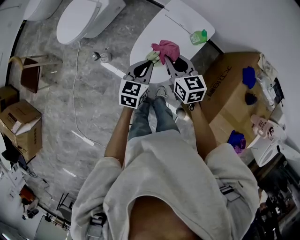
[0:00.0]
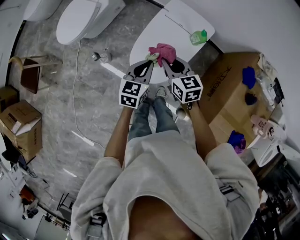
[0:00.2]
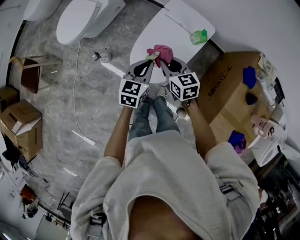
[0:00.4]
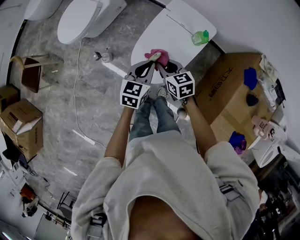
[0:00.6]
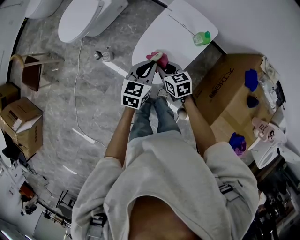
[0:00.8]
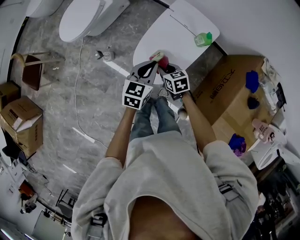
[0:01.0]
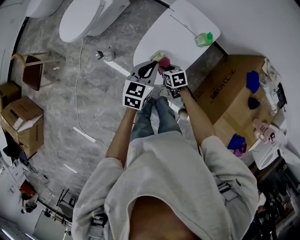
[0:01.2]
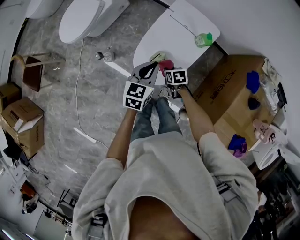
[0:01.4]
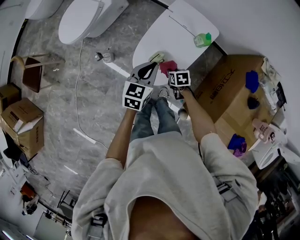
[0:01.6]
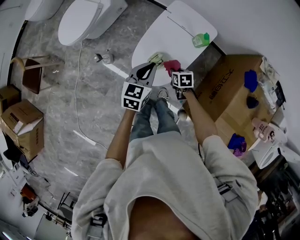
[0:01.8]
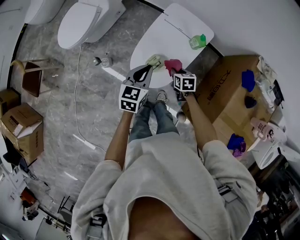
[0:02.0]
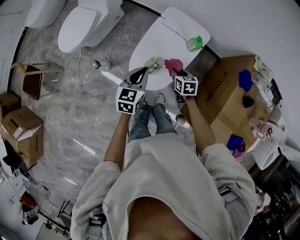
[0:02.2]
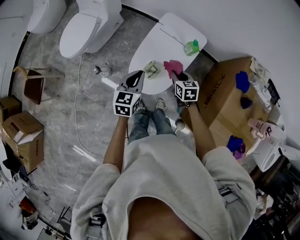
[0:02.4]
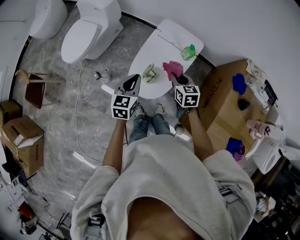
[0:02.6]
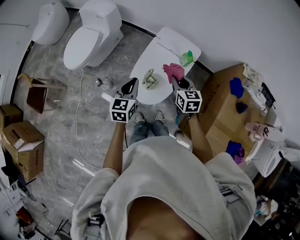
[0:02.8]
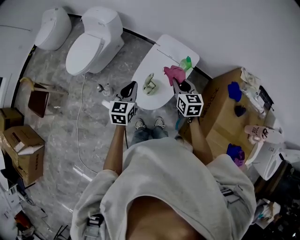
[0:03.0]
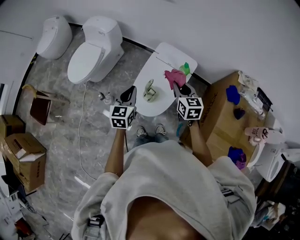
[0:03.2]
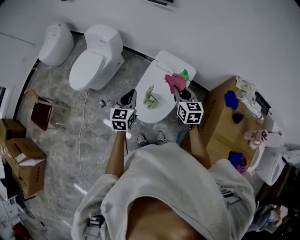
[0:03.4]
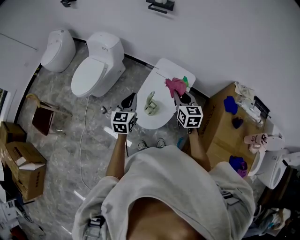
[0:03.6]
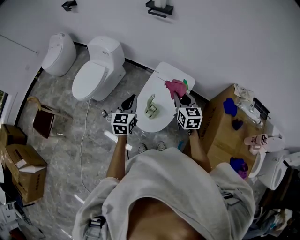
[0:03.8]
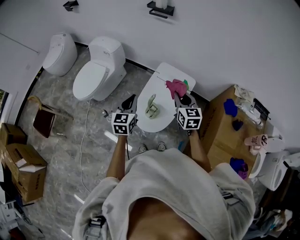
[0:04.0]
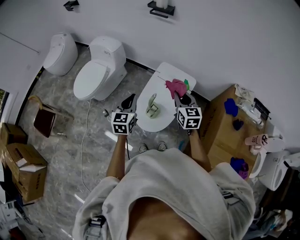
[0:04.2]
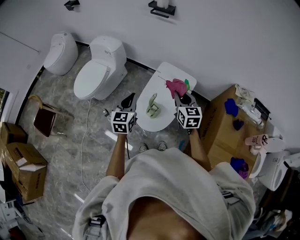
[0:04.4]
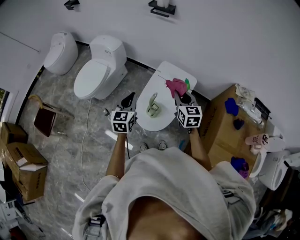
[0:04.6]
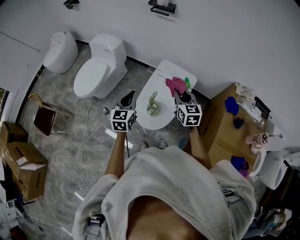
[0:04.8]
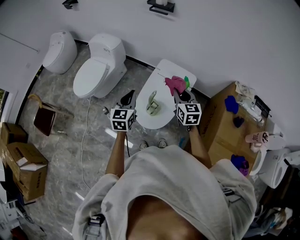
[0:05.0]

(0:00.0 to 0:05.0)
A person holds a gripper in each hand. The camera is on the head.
0:00.0 - 0:01.6: The right gripper is displaced downward by roughly 25 cm, and tilts its fingers roughly 40 degrees downward.
0:01.6 - 0:03.4: The left gripper travels upward and to the left by about 10 cm. The right gripper goes roughly 30 cm upward, and tips its fingers upward by roughly 40 degrees.
0:03.4 - 0:05.0: The grippers make only small movements.

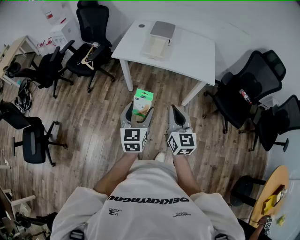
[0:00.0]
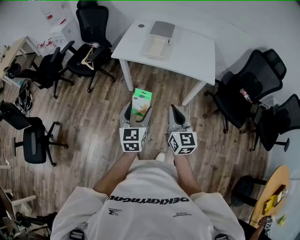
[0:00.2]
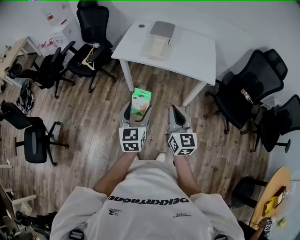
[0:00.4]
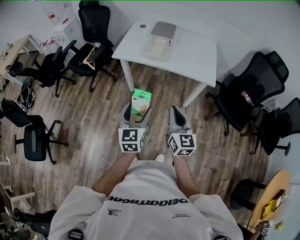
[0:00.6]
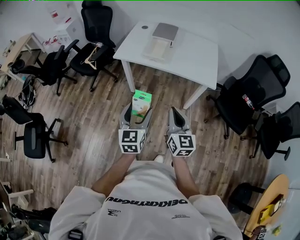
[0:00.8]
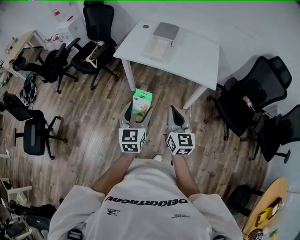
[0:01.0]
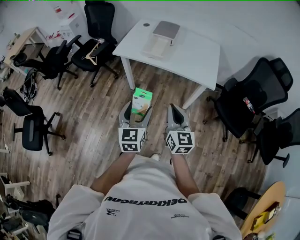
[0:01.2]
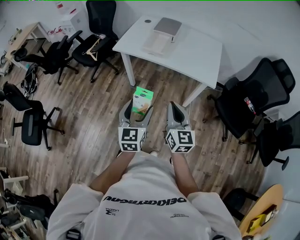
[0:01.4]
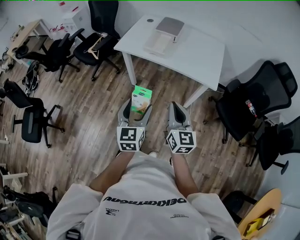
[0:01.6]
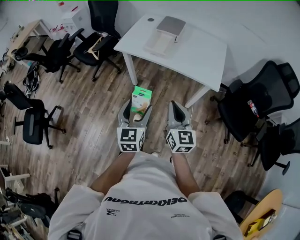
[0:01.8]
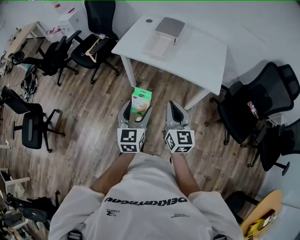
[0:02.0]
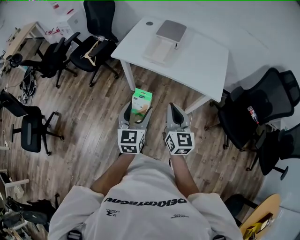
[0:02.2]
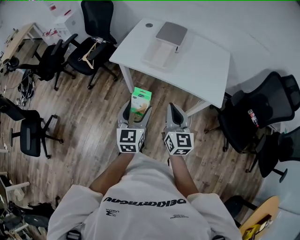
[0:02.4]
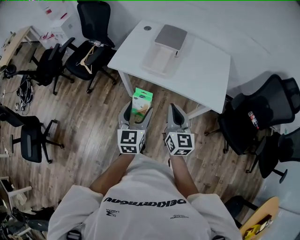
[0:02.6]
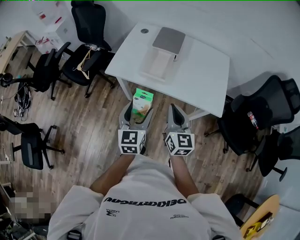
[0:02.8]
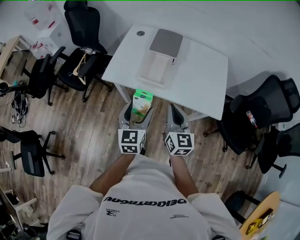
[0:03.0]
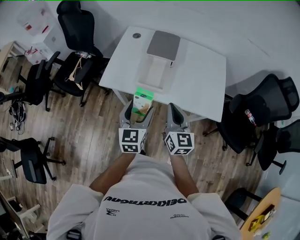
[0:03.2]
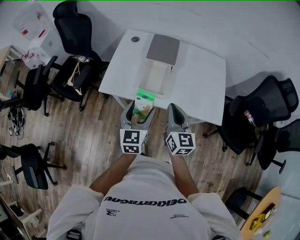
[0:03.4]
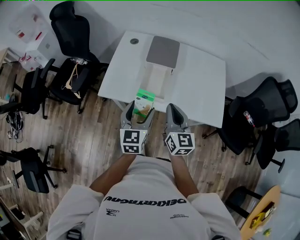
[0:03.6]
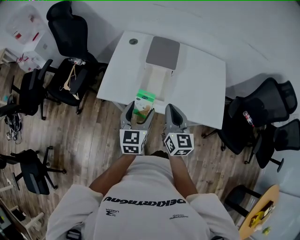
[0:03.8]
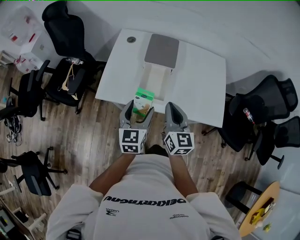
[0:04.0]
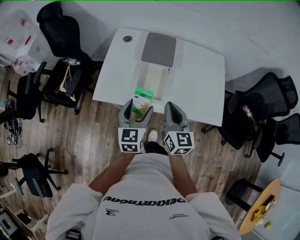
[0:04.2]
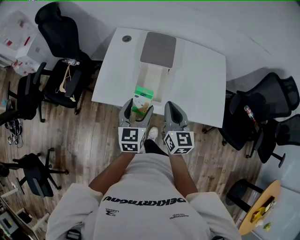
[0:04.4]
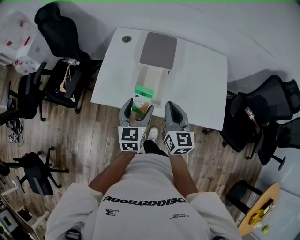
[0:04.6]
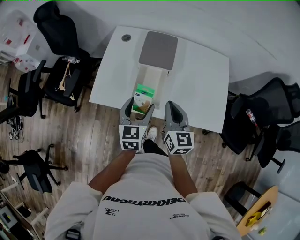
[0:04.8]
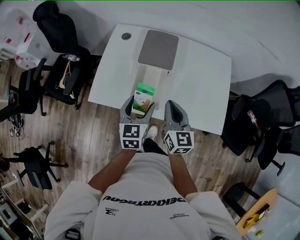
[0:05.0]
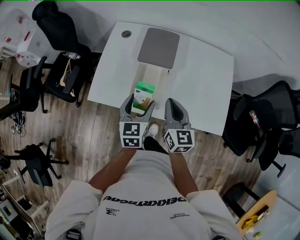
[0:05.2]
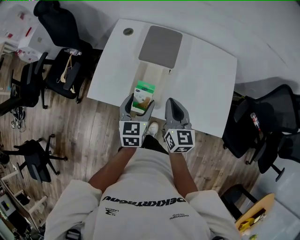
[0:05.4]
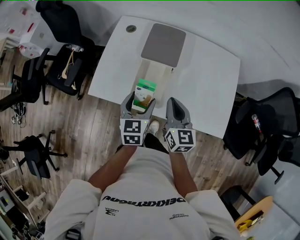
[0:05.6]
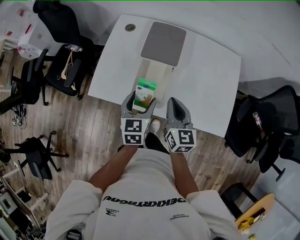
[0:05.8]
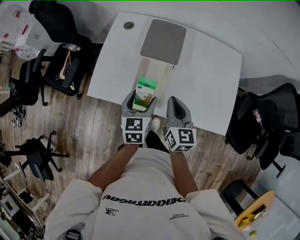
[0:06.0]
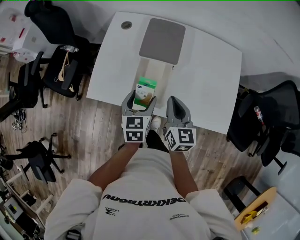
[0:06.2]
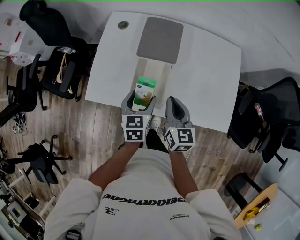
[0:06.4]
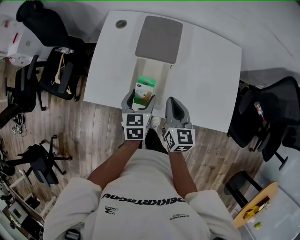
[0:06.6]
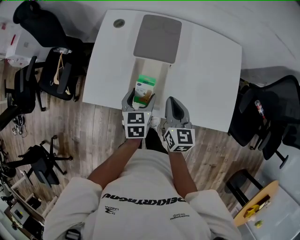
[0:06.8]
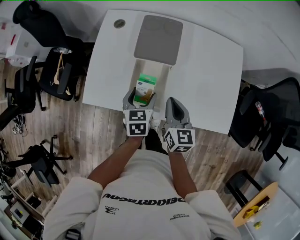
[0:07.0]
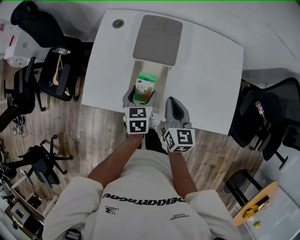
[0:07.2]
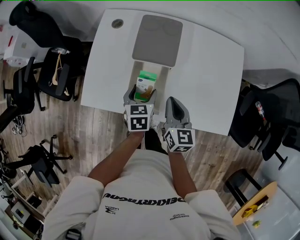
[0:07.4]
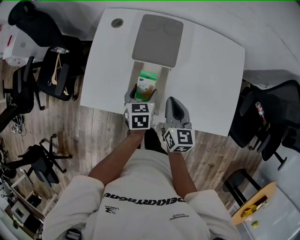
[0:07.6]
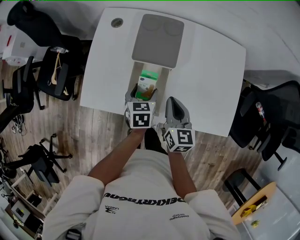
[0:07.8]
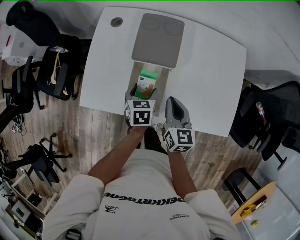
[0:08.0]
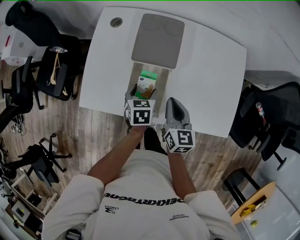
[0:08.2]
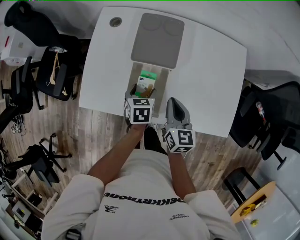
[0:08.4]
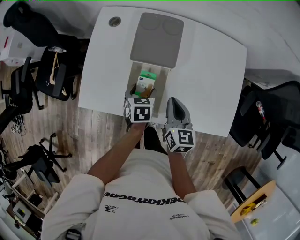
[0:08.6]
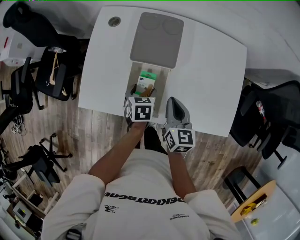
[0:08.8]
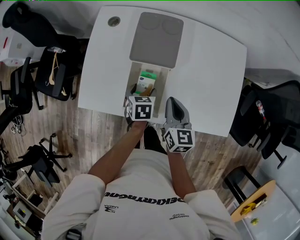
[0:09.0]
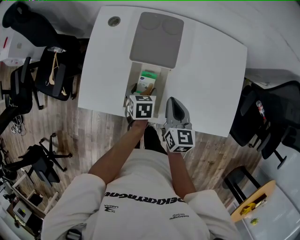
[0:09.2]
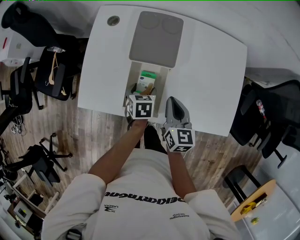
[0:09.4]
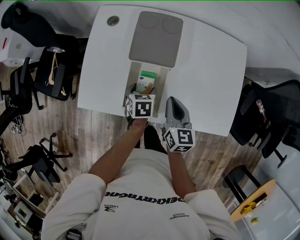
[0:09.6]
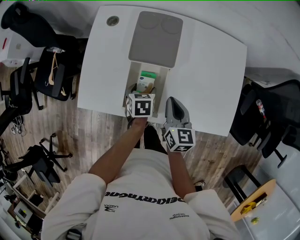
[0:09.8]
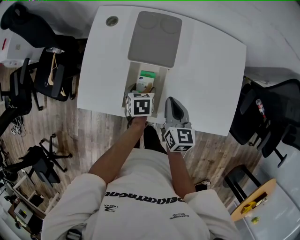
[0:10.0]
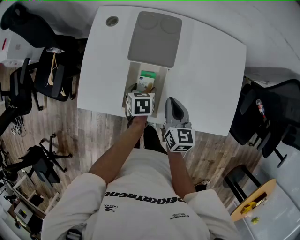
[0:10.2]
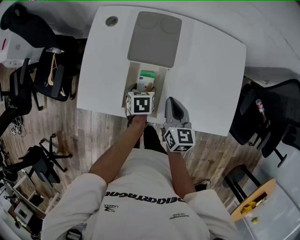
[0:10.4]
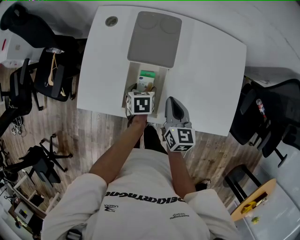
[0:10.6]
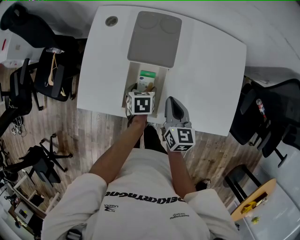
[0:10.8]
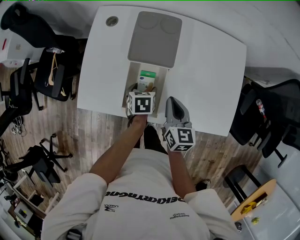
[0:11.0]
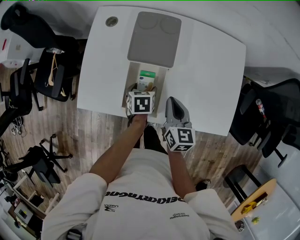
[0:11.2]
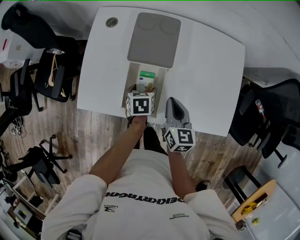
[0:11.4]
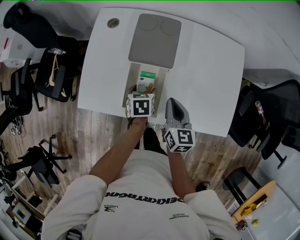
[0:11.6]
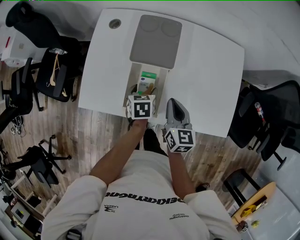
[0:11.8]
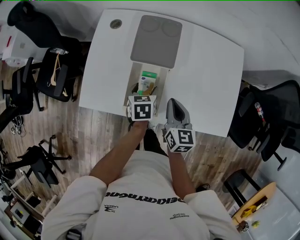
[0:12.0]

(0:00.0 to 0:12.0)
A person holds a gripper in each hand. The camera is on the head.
0:00.0 - 0:01.6: Both grippers move to the right, some 10 cm.
0:01.6 - 0:03.0: The grippers both shift forward by approximately 30 cm.
0:03.0 - 0:04.4: Both grippers travel together forward, approximately 15 cm.
0:04.4 - 0:06.0: Both grippers travel together forward and downward, some 10 cm.
0:06.0 - 0:07.6: The right gripper is displaced downward by some 5 cm, while the left gripper moves downward and forward, roughly 10 cm.
0:07.6 - 0:09.0: The left gripper shifts roughly 5 cm downward.
0:09.0 - 0:10.4: There are only small adjustments of the grippers.
0:10.4 - 0:12.0: The left gripper is displaced upward by roughly 5 cm.

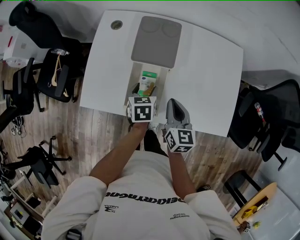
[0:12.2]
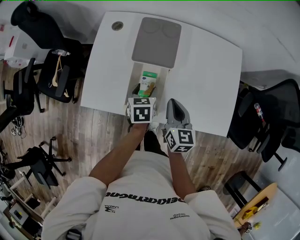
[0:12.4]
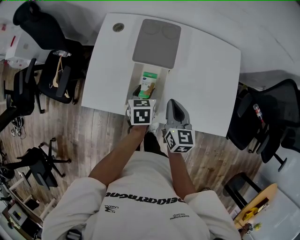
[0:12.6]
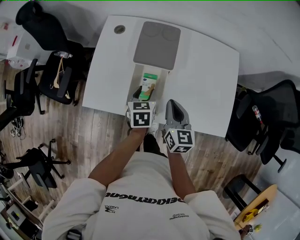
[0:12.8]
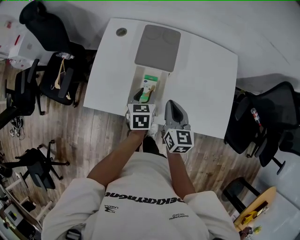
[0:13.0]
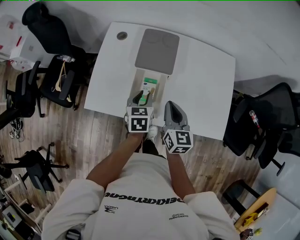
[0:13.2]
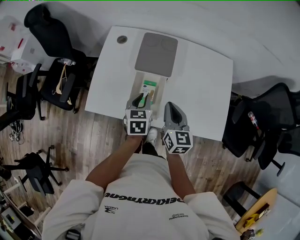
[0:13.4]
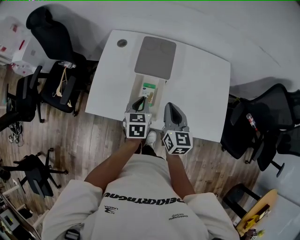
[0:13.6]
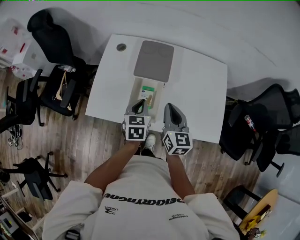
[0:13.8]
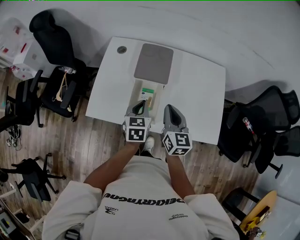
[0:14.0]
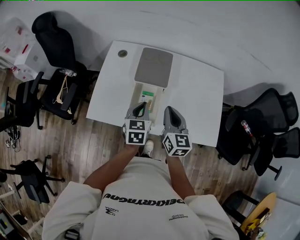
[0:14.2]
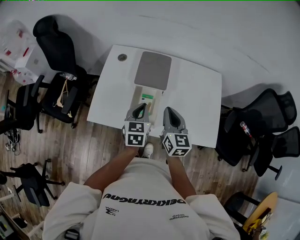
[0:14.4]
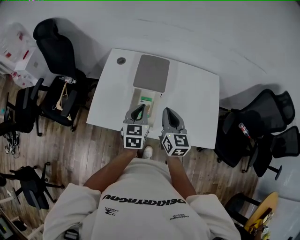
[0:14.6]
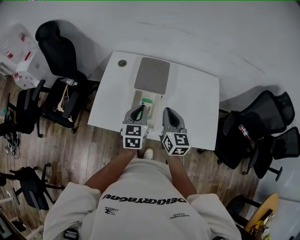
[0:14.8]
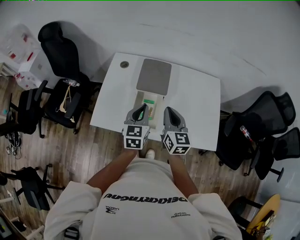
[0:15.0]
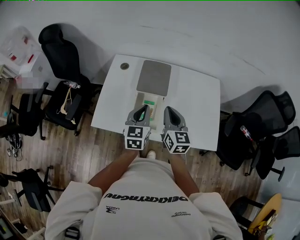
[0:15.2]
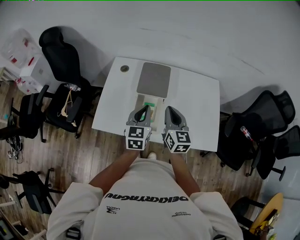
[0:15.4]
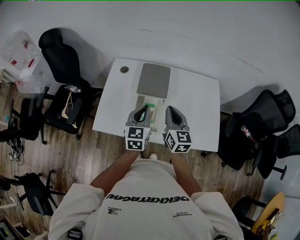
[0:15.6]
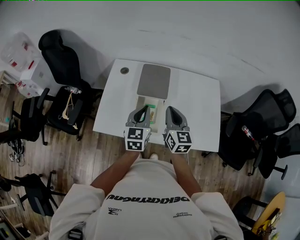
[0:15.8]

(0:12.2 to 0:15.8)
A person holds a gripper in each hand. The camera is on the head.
0:12.2 - 0:14.0: Both grippers travel together upward, roughly 10 cm. The left gripper closes its fingers.
0:14.0 - 0:15.8: The left gripper is displaced upward by some 10 cm, and swivels roughly 20 degrees. The right gripper changes place by some 5 cm.

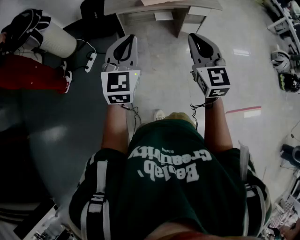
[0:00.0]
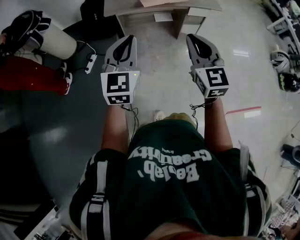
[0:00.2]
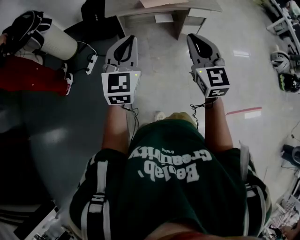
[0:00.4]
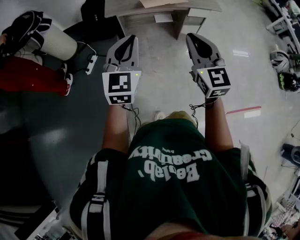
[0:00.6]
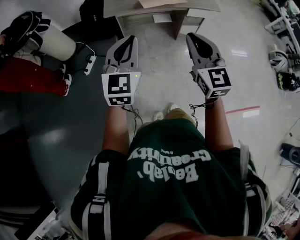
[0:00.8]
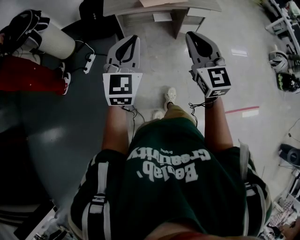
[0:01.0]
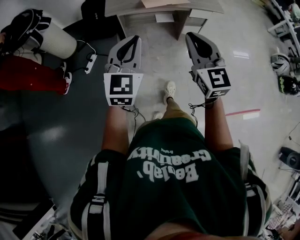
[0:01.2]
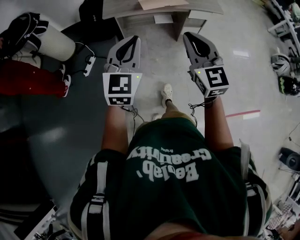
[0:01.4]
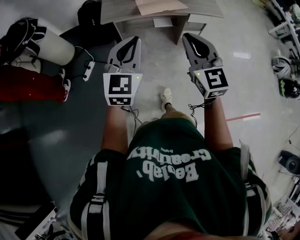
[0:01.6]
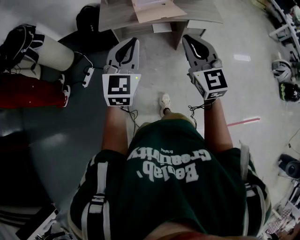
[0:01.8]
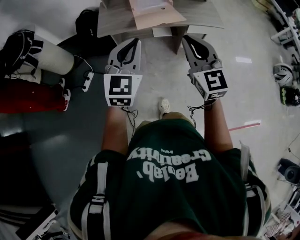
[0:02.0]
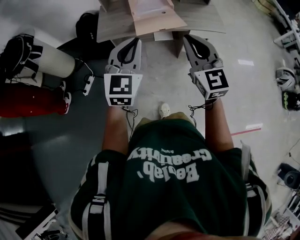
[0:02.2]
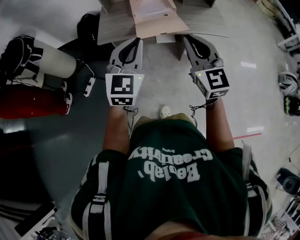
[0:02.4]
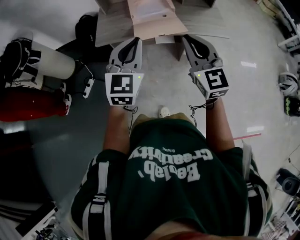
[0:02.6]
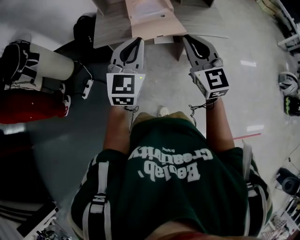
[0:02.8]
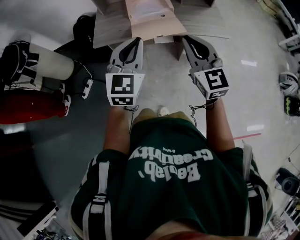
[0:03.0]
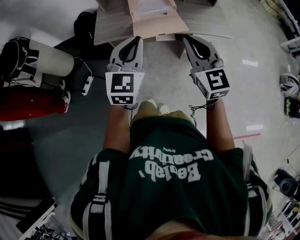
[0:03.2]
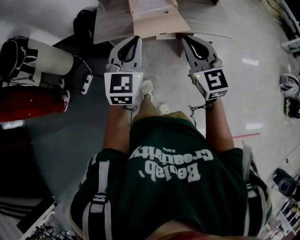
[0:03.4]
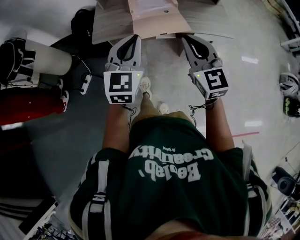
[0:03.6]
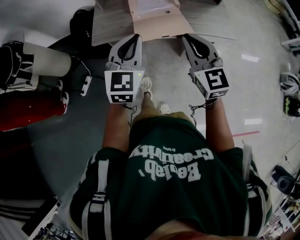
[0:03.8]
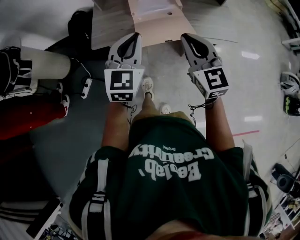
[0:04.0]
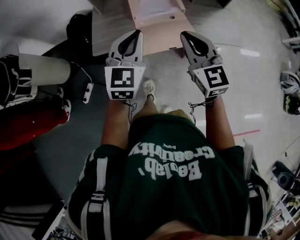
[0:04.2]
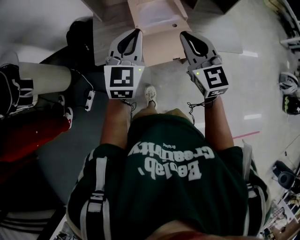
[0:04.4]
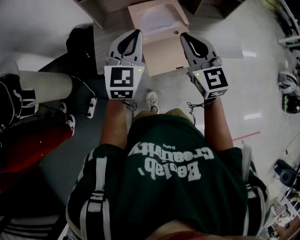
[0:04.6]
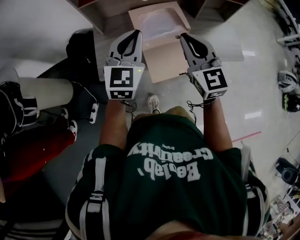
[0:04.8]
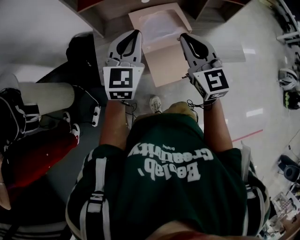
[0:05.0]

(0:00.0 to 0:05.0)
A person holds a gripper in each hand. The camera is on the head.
0:00.0 - 0:01.6: The two grippers go about 10 cm forward.
0:01.6 - 0:03.4: Both grippers travel together forward and to the right, approximately 30 cm.
0:03.4 - 0:05.0: The grippers both shift forward by about 35 cm.
